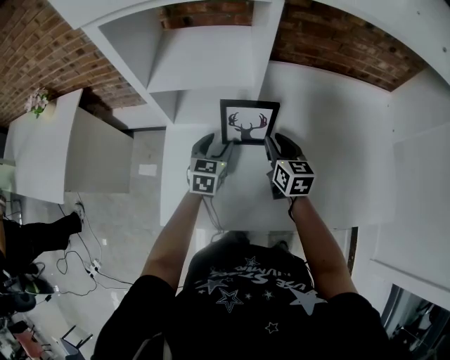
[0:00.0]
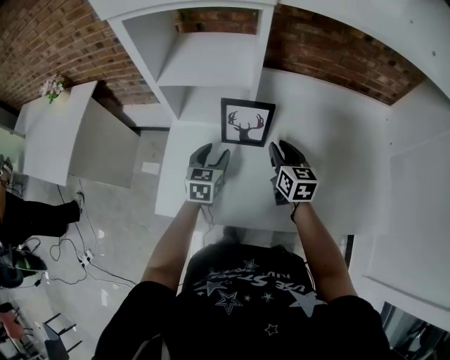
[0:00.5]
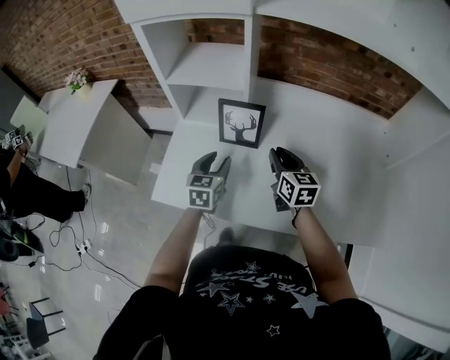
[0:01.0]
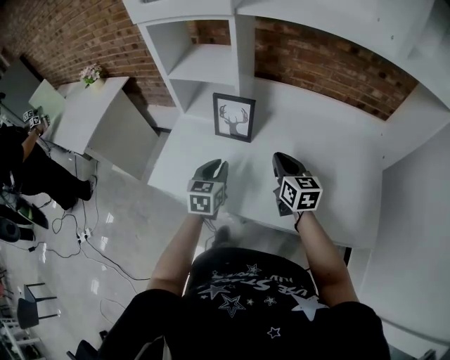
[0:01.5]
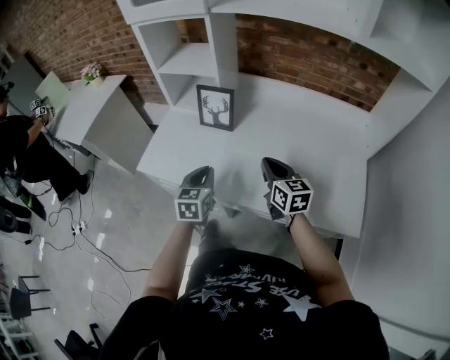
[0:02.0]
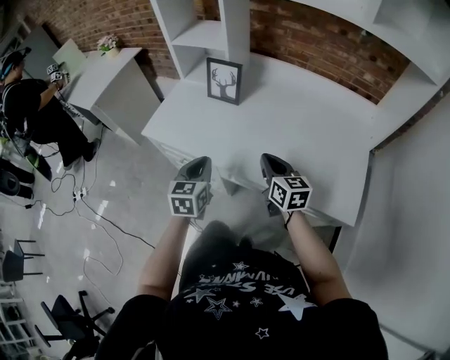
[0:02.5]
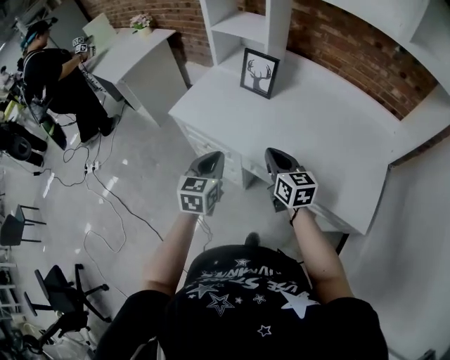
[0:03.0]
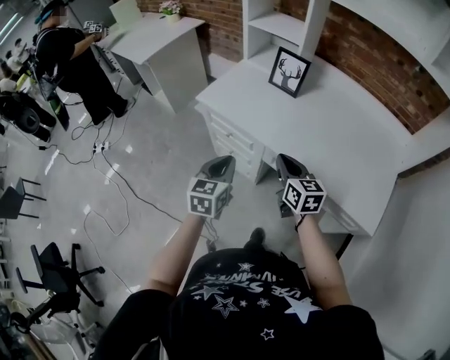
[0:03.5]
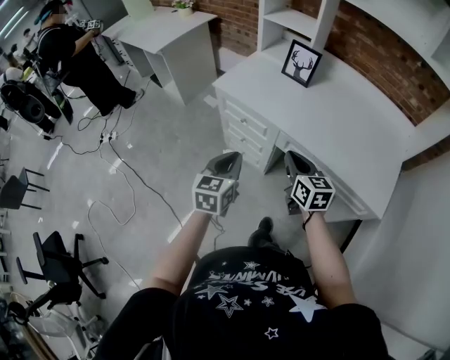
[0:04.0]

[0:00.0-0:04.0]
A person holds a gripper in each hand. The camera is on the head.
0:00.0 to 0:02.0: The left gripper travels backward by approximately 25 cm, rotates about 20 degrees, and closes up. Meanwhile the right gripper goes approximately 25 cm backward and to the right, rotates roughly 20 degrees, and closes its fingers.
0:02.0 to 0:04.0: Both grippers travel together backward and to the left, some 30 cm.

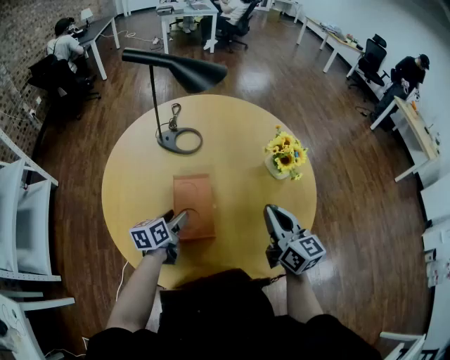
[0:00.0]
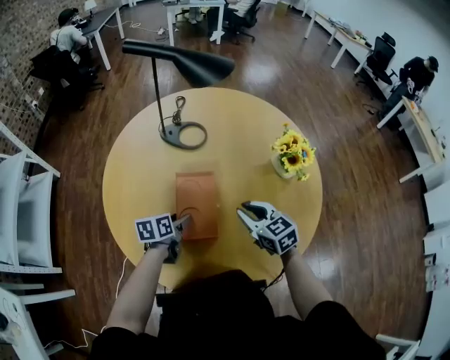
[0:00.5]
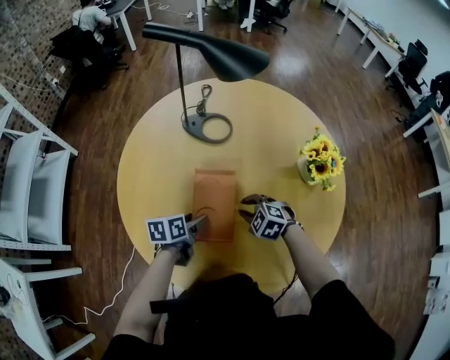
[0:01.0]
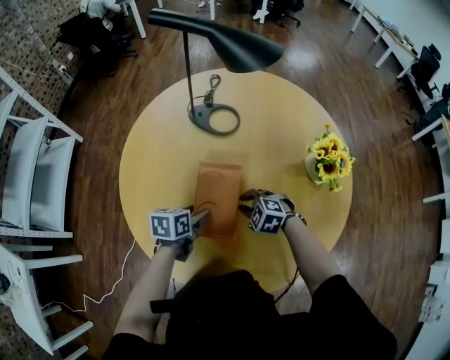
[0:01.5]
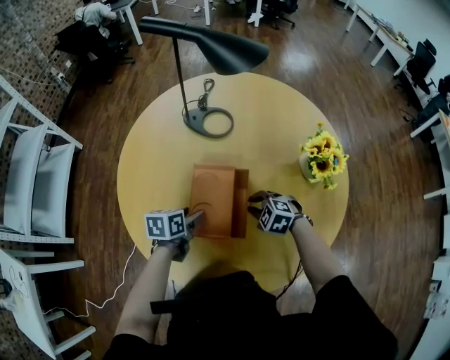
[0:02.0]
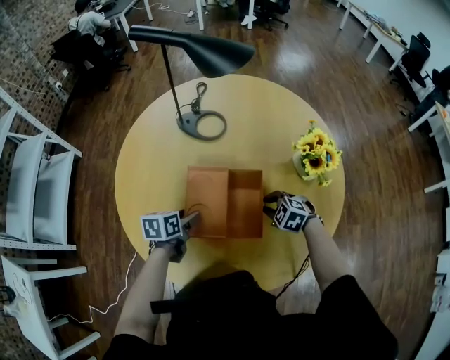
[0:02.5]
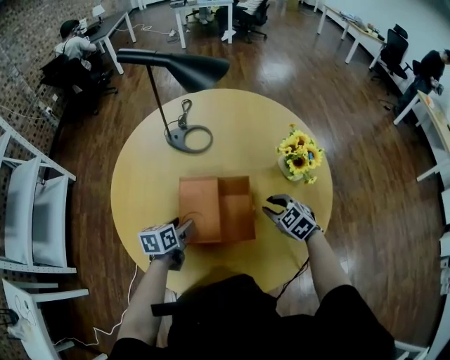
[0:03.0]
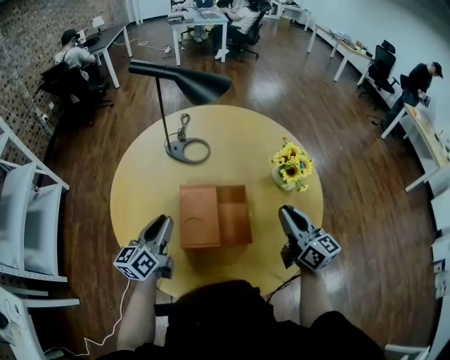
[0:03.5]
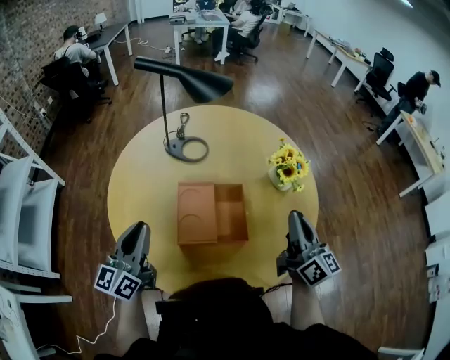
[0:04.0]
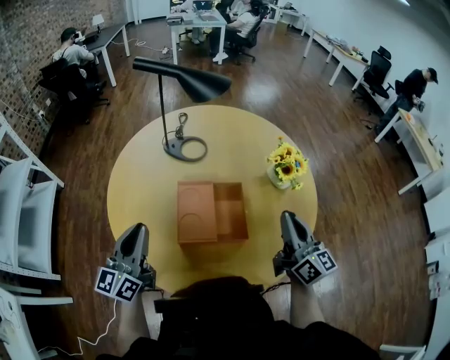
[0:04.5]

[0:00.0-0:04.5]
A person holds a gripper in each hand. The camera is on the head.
0:00.0 to 0:02.0: The right gripper moves downward, roughly 25 cm, and tilts its fingers roughly 50 degrees downward.
0:02.0 to 0:04.5: The left gripper is displaced upward and backward by some 25 cm, tilts its fingers approximately 50 degrees upward, and closes; the right gripper goes roughly 30 cm upward, and tips its fingers upward by approximately 70 degrees.

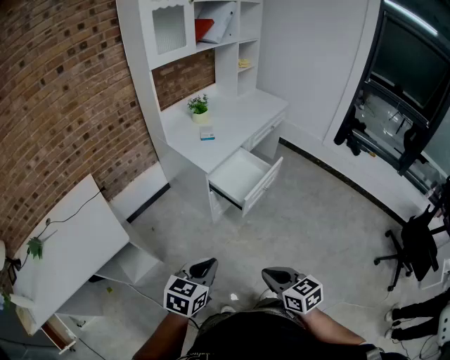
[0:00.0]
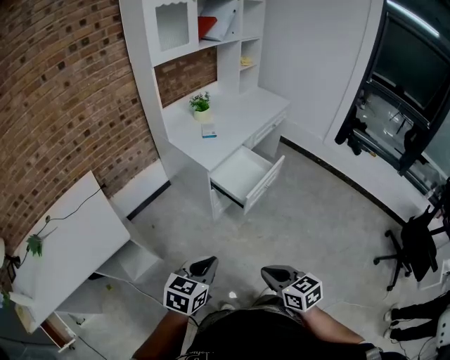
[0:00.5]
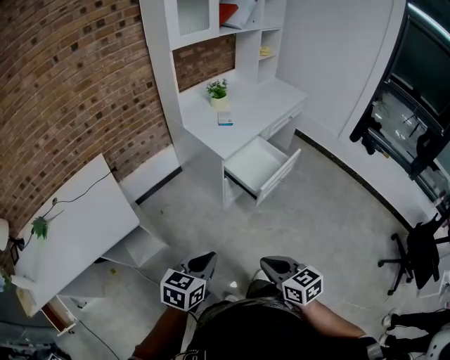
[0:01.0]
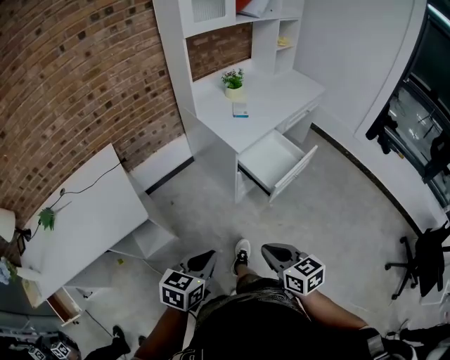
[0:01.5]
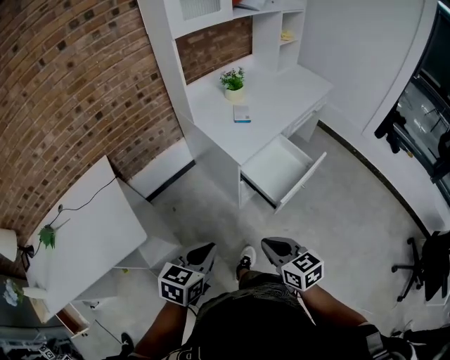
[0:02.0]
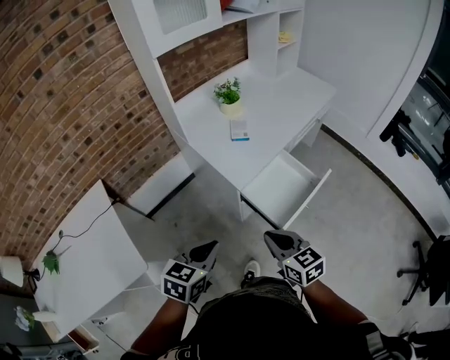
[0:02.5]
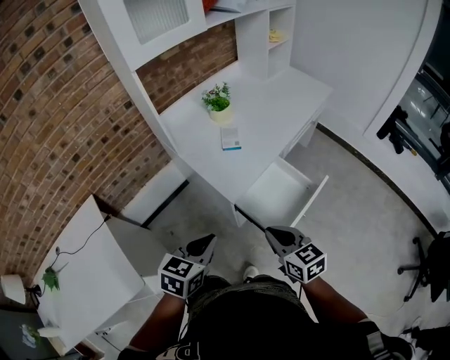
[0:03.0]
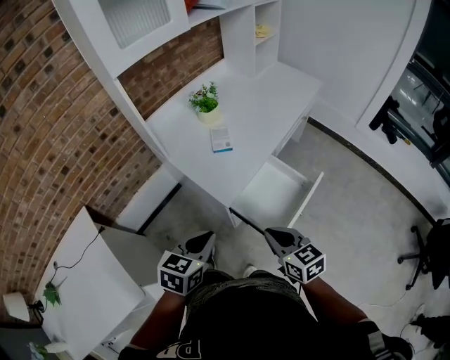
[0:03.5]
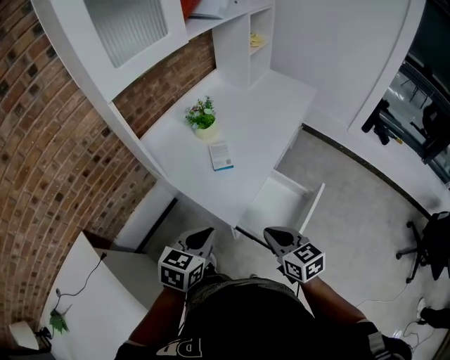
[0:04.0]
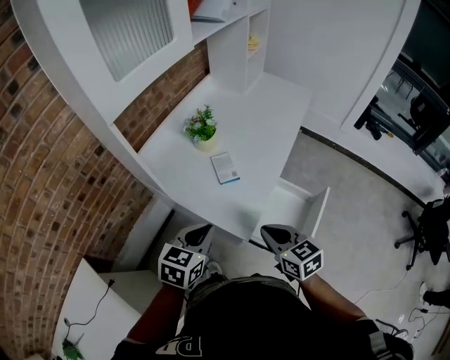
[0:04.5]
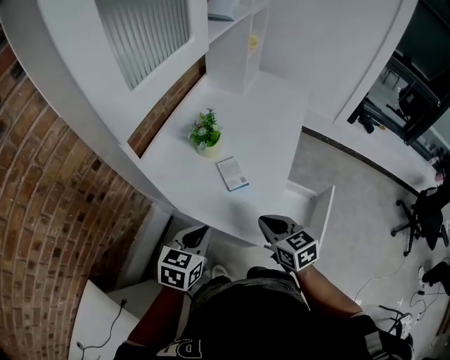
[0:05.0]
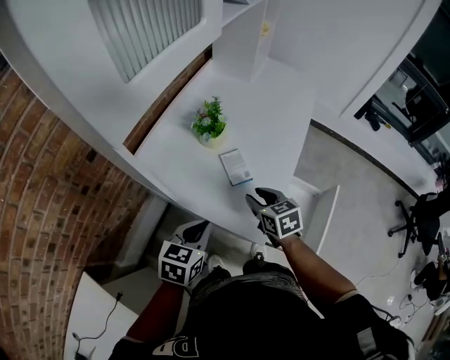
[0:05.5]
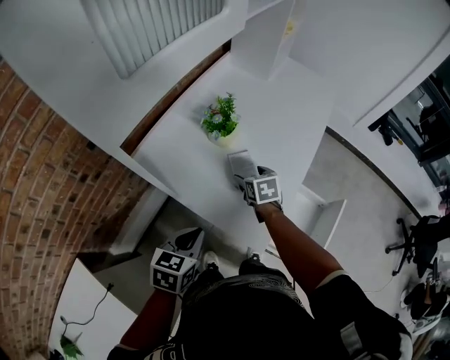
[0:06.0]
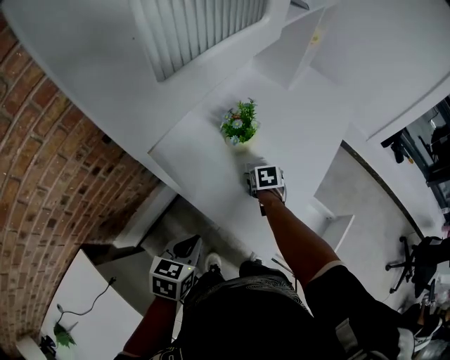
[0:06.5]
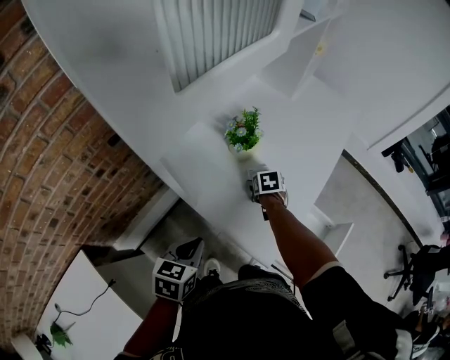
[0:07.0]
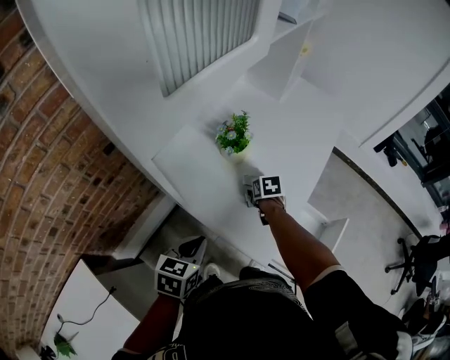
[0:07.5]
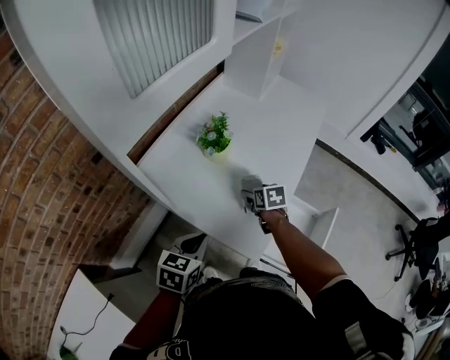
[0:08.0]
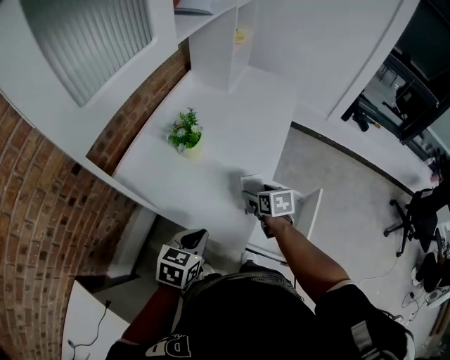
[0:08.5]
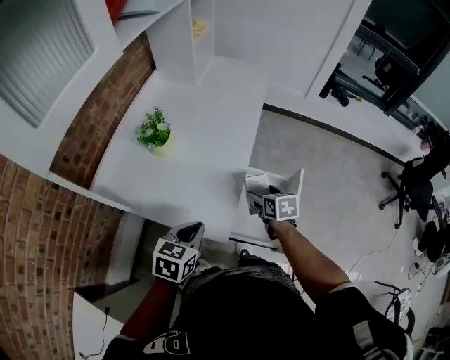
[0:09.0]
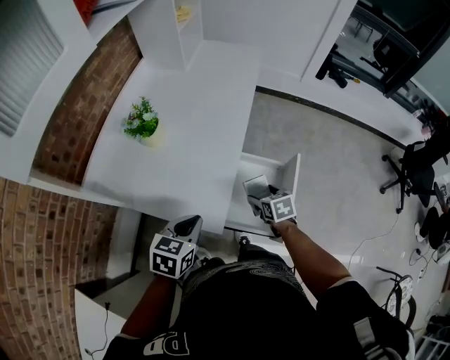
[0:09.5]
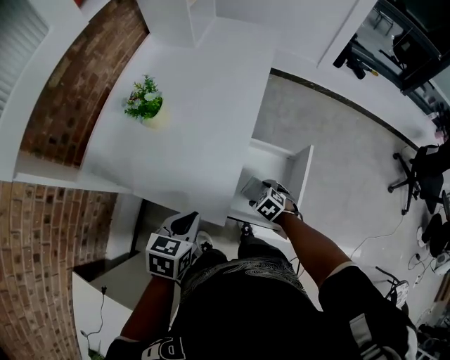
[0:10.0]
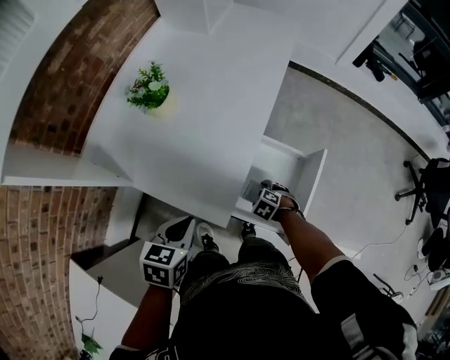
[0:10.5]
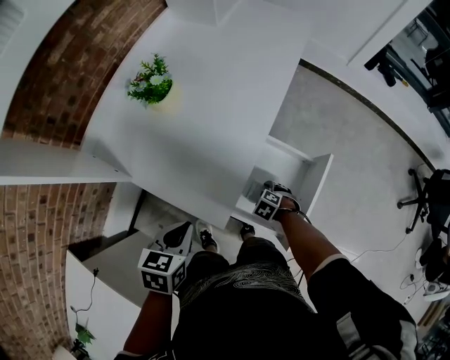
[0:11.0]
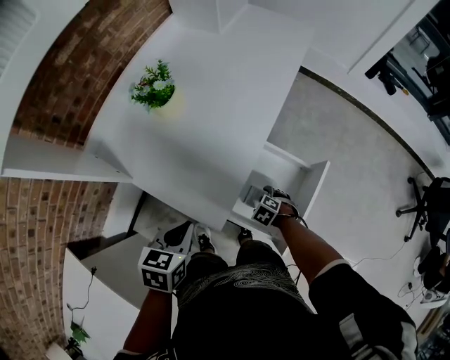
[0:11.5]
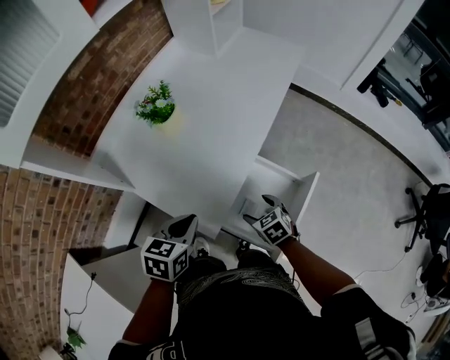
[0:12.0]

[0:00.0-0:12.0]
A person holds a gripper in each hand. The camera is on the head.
0:00.0 to 0:02.0: The left gripper moves forward and to the left, roughly 15 cm. Meanwhile the right gripper travels forward by about 20 cm.
0:02.0 to 0:04.0: The grippers both shift forward by some 35 cm.
0:04.0 to 0:06.0: The right gripper moves forward, to the left and downward, some 40 cm, swivels about 30 degrees, and opens, while the left gripper moves to the left, forward and downward, approximately 25 cm.
0:08.0 to 0:10.0: The left gripper shifts some 15 cm to the right, while the right gripper travels to the right, backward and downward by some 30 cm, and changes its angle by some 30 degrees.
0:10.0 to 0:12.0: The right gripper is displaced upward by roughly 5 cm.

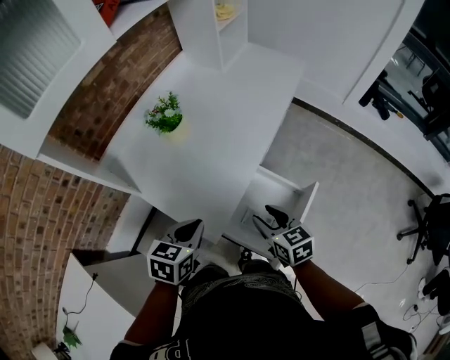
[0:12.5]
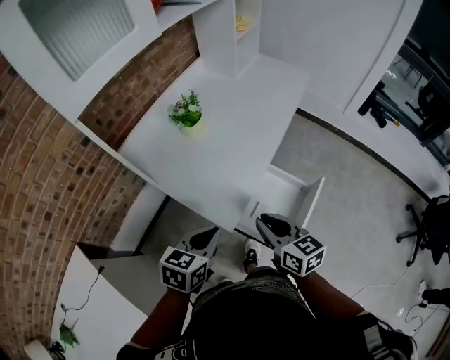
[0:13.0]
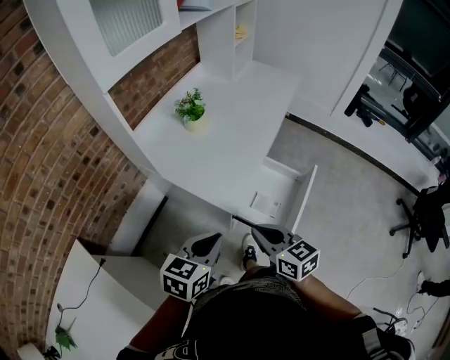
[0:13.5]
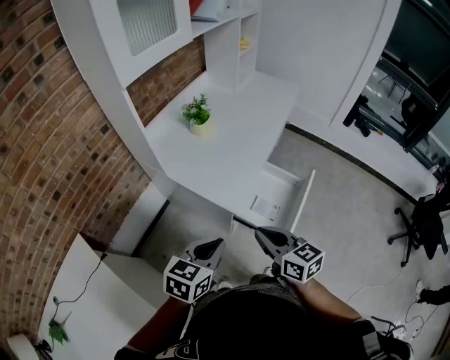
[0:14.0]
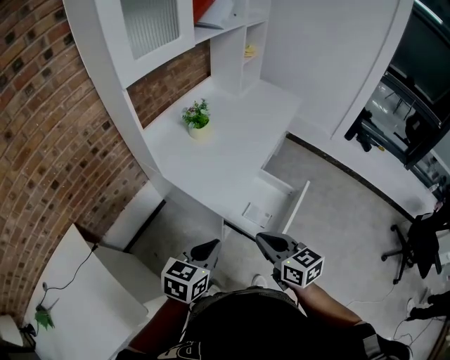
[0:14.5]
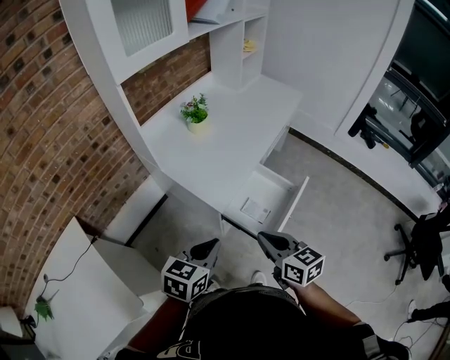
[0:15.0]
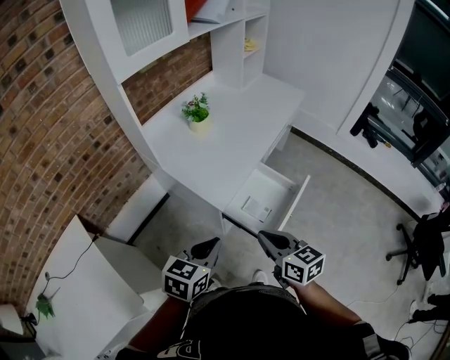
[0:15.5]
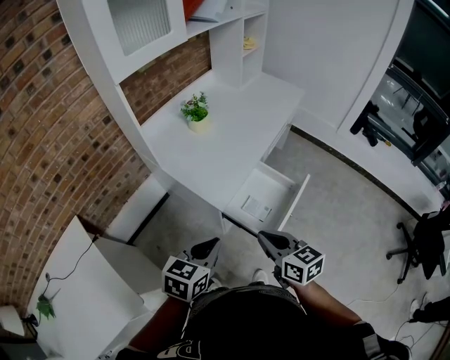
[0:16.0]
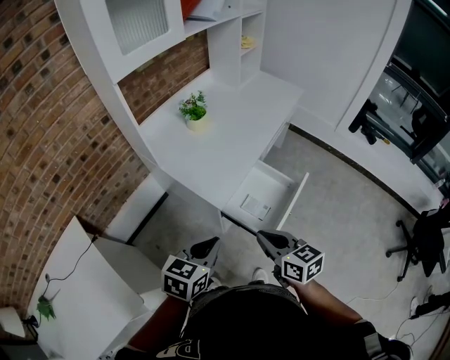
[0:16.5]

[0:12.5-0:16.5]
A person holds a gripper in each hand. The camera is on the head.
0:12.5 to 0:14.5: The left gripper moves backward, some 20 cm, while the right gripper heads backward and upward, covering roughly 25 cm, and closes.
0:14.5 to 0:16.5: The grippers stay close to where they were, moving slightly.

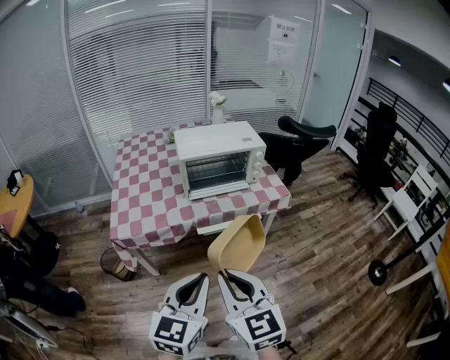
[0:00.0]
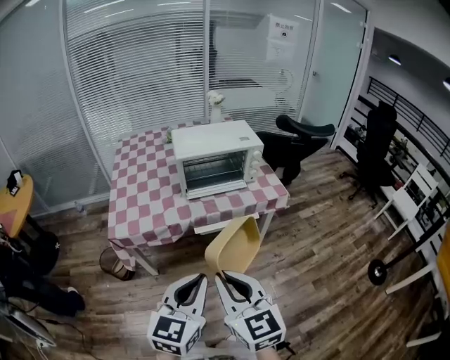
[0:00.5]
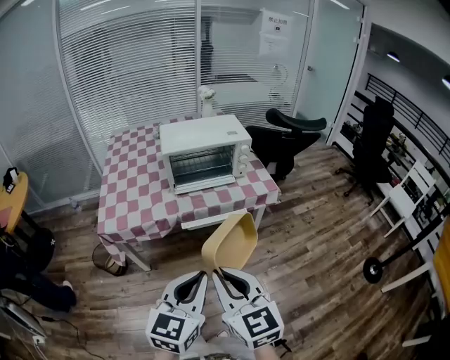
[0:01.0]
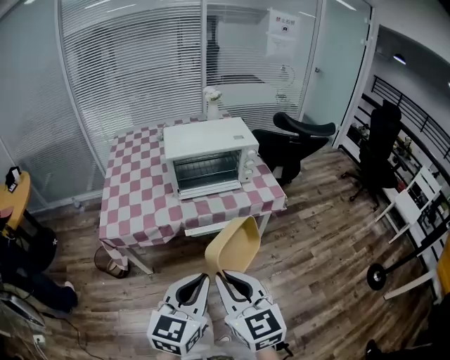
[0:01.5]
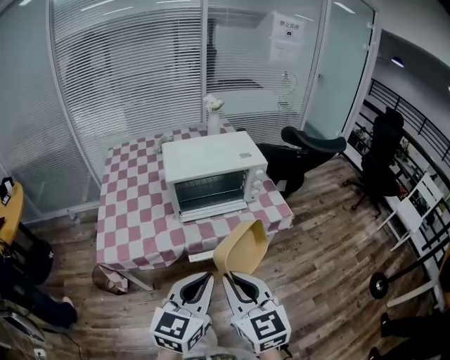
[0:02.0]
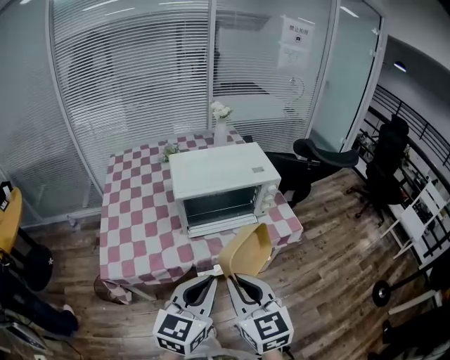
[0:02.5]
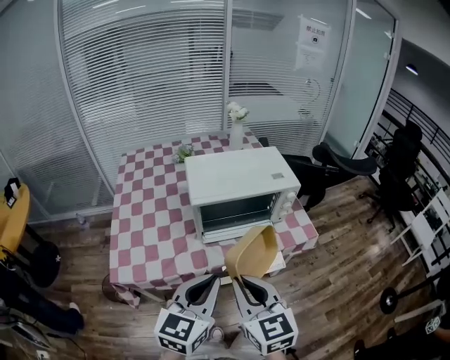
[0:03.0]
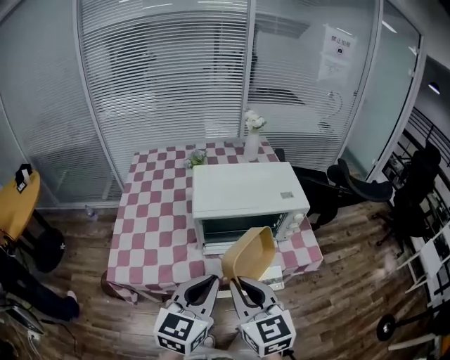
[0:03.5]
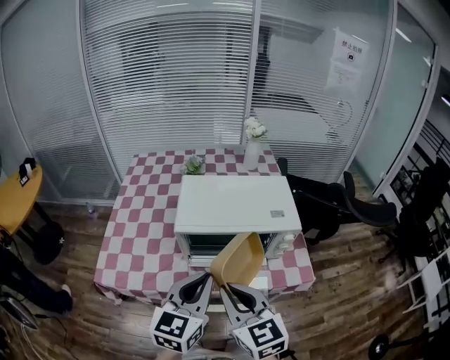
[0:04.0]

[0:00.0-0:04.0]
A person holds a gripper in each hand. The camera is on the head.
0:00.0 to 0:02.0: Both grippers move forward, about 15 cm.
0:02.0 to 0:04.0: The two grippers go about 20 cm forward.
